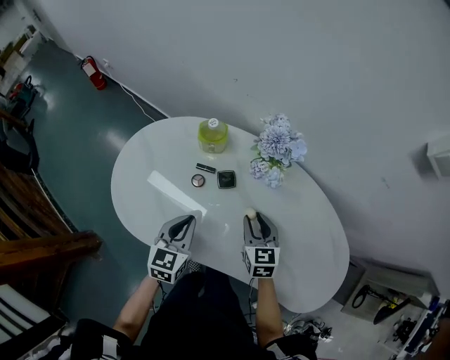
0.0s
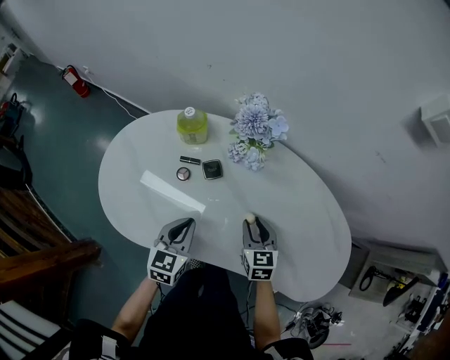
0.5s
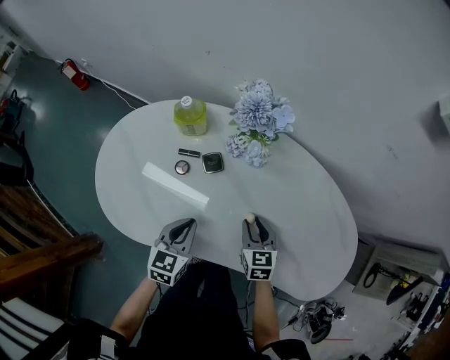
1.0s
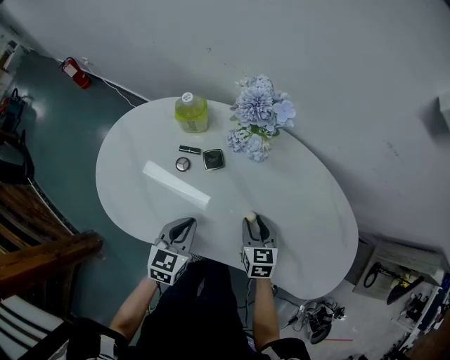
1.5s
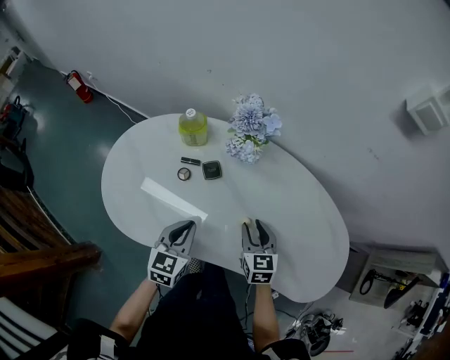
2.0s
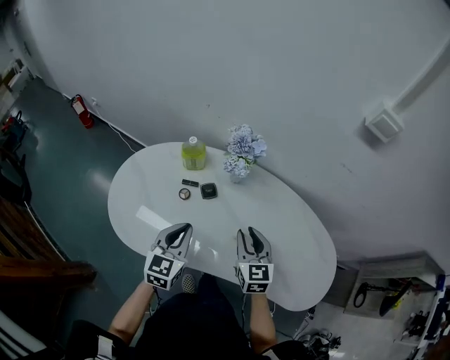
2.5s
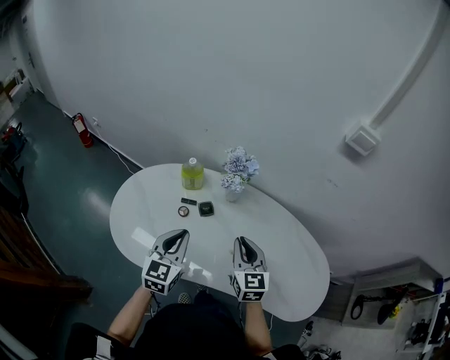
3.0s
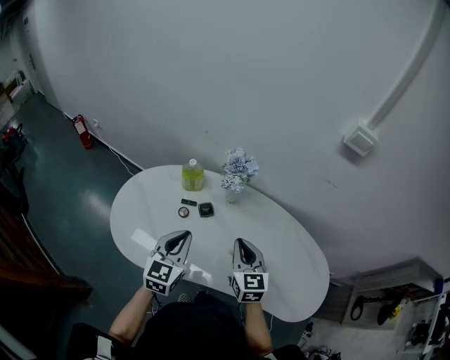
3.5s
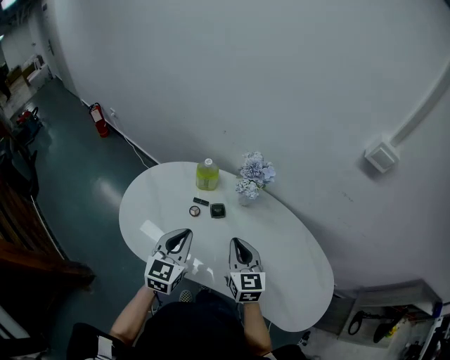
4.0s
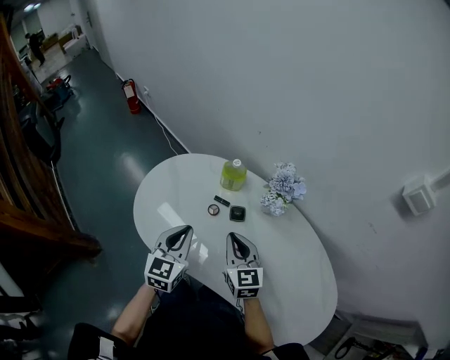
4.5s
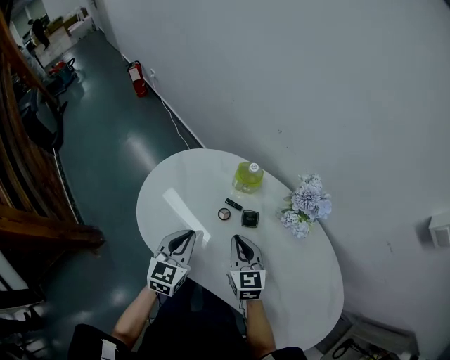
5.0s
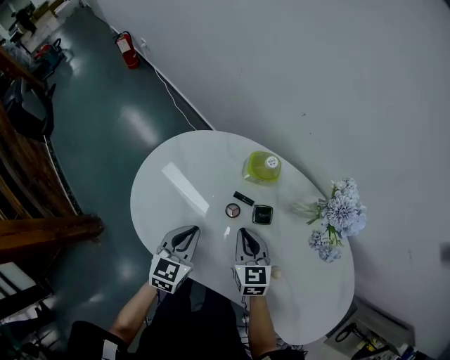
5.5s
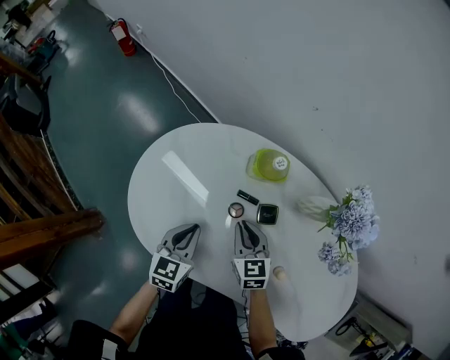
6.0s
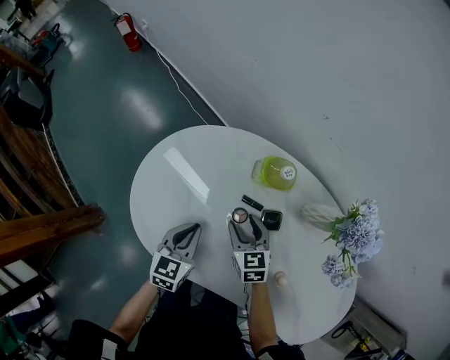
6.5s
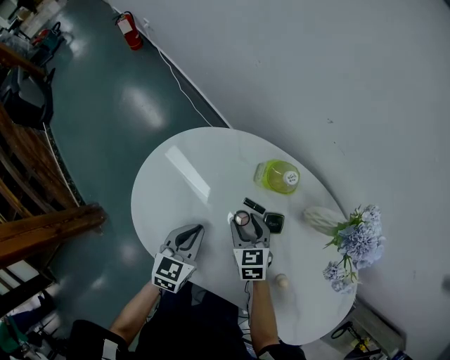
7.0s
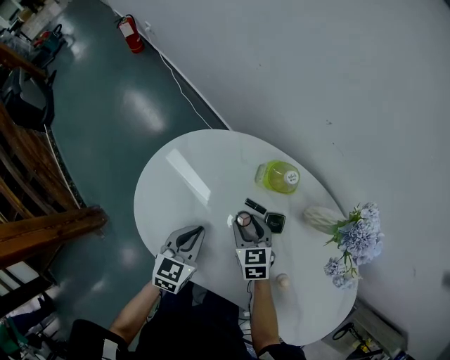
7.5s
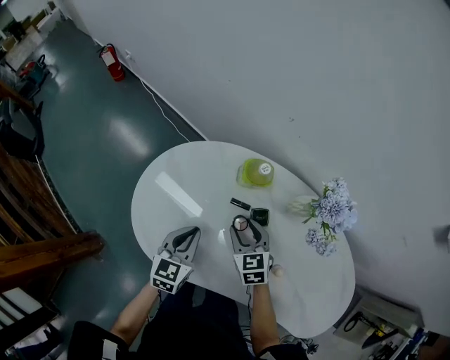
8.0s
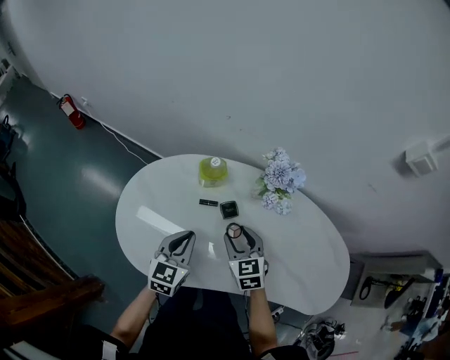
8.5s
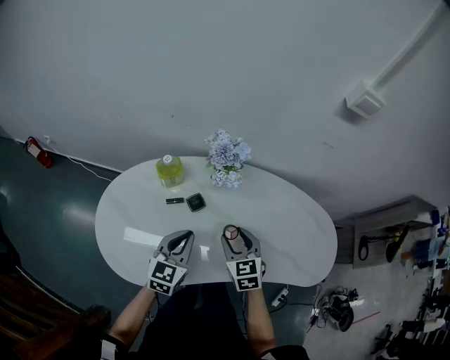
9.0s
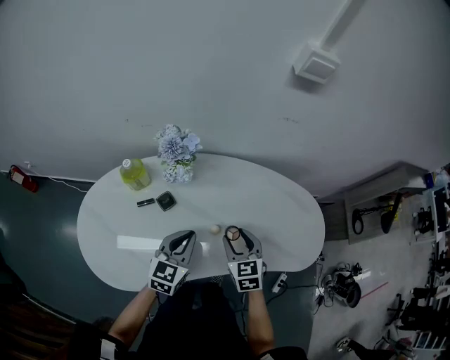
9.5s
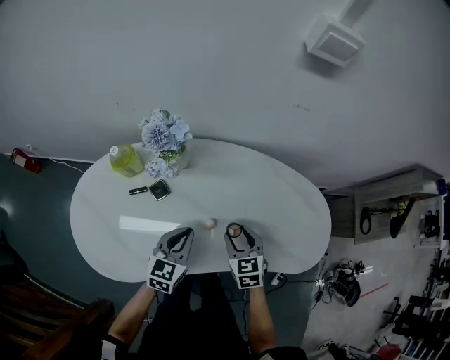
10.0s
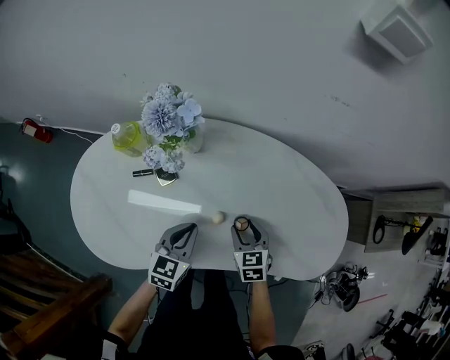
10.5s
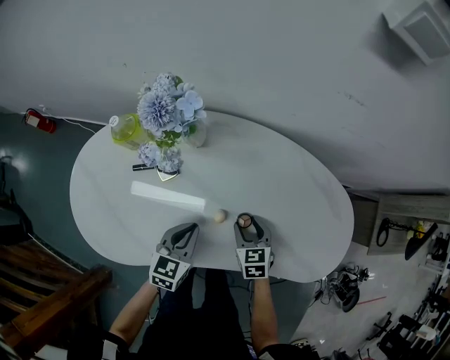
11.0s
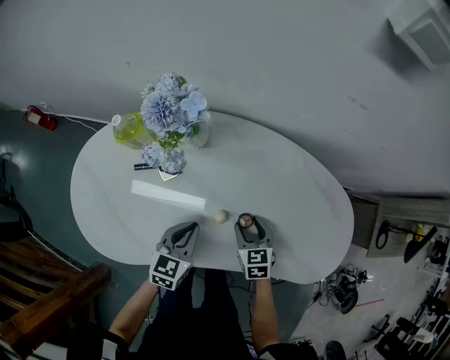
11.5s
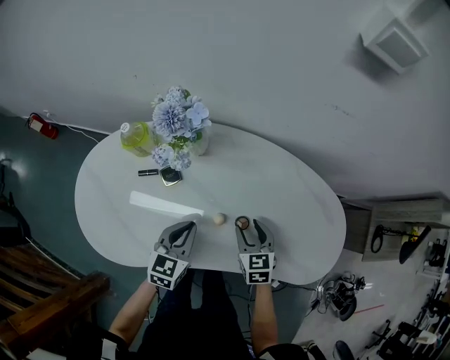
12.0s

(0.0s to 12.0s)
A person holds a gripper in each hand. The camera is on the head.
0.0s - 2.0s: The left gripper travels to the right by approximately 5 cm. The right gripper shifts roughly 10 cm backward and to the right, and reaches roughly 10 cm downward, then returns.
2.0s - 4.0s: The left gripper goes roughly 15 cm upward. Meanwhile the right gripper moves upward and to the left, some 20 cm, and closes up.
4.0s - 6.0s: The two grippers go approximately 25 cm downward, forward and to the left. The left gripper turns by about 20 degrees, while the right gripper rotates about 20 degrees.
6.0s - 8.0s: The right gripper opens its fingers. The left gripper moves upward, approximately 5 cm.
8.0s - 10.0s: The left gripper travels upward and back again, some 10 cm each way, and swivels some 40 degrees. The right gripper reaches about 10 cm upward, then returns, and changes its angle by approximately 40 degrees.
10.0s - 12.0s: The right gripper heads downward, covering roughly 5 cm.

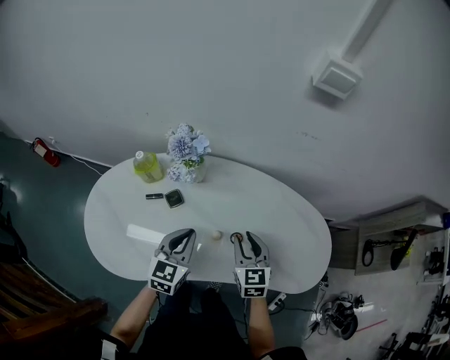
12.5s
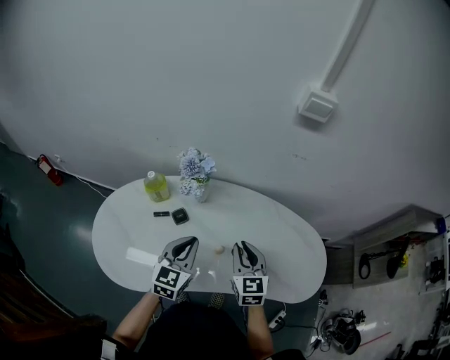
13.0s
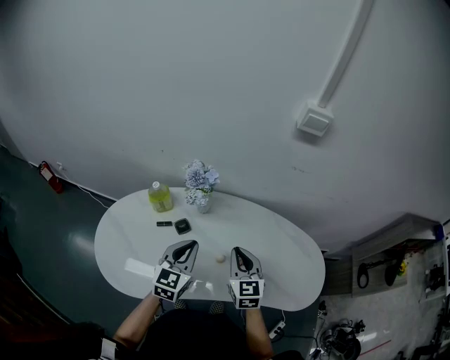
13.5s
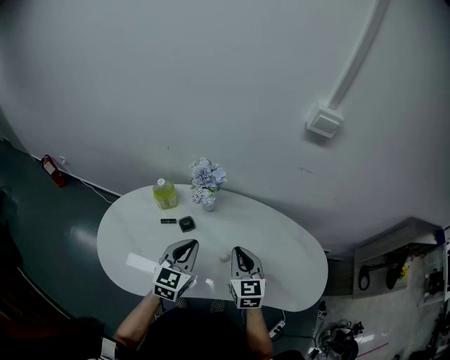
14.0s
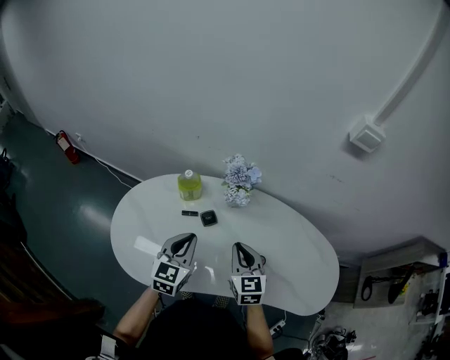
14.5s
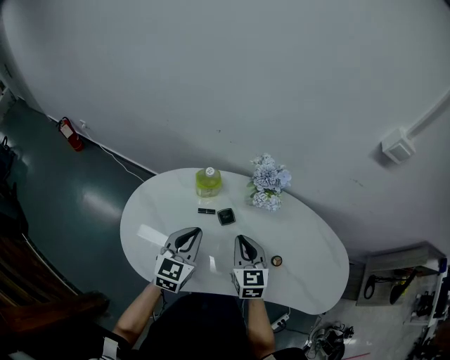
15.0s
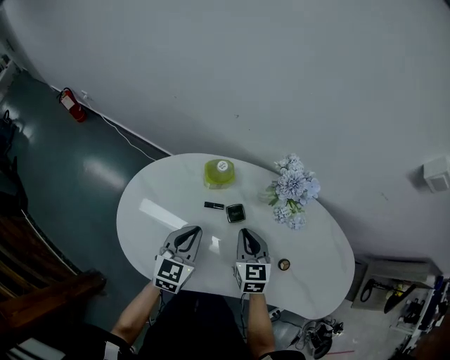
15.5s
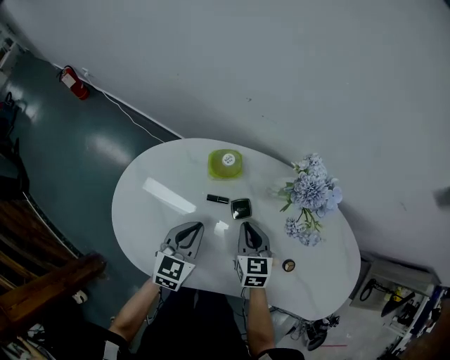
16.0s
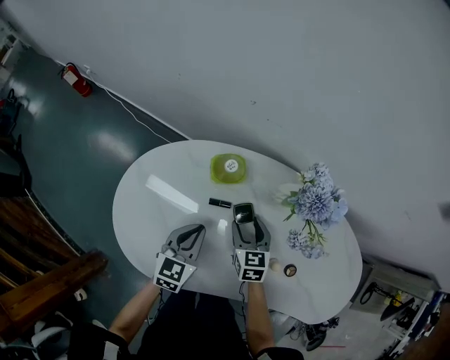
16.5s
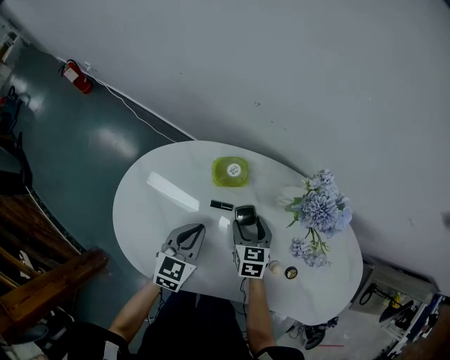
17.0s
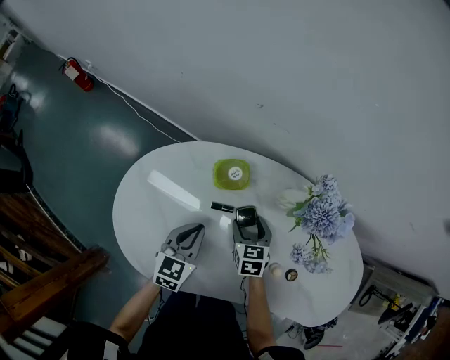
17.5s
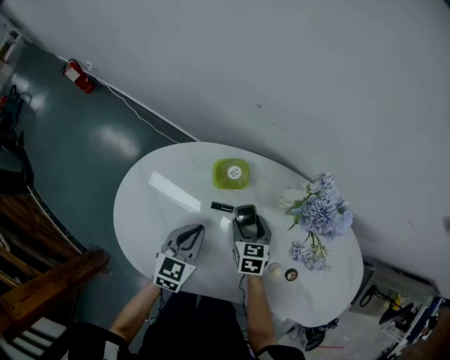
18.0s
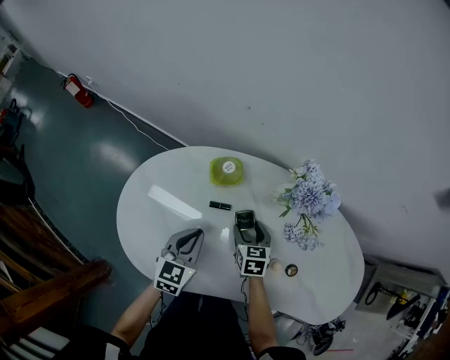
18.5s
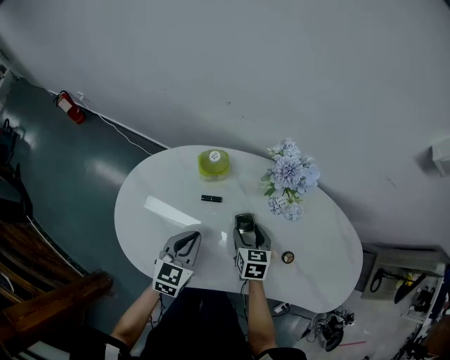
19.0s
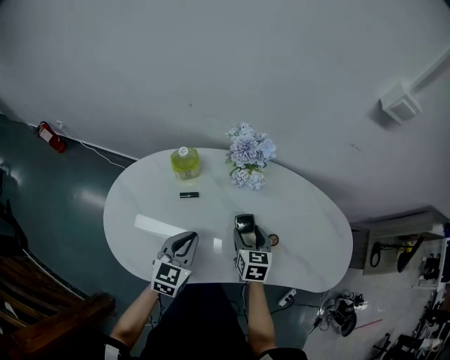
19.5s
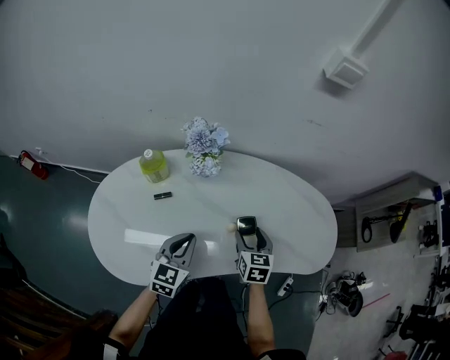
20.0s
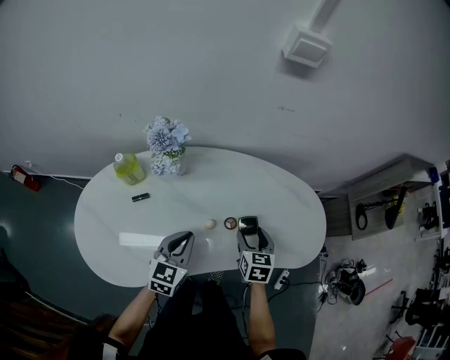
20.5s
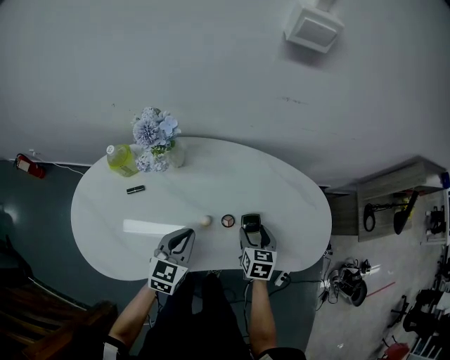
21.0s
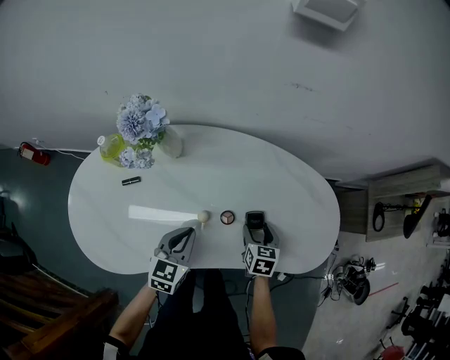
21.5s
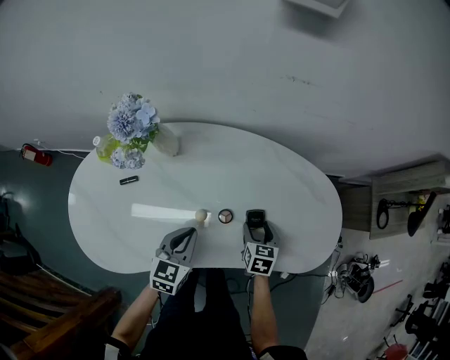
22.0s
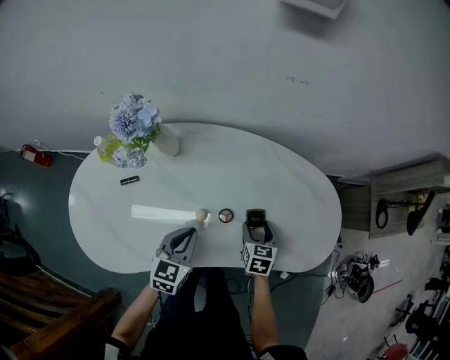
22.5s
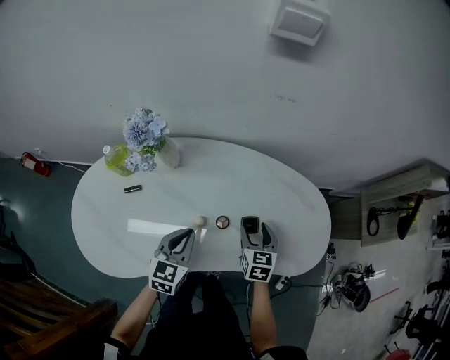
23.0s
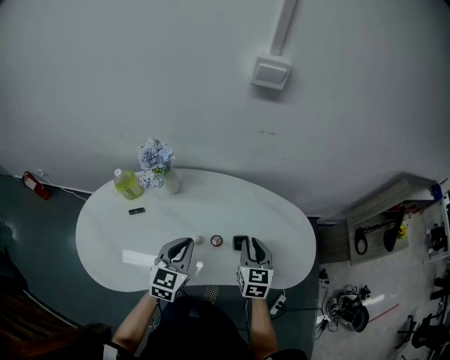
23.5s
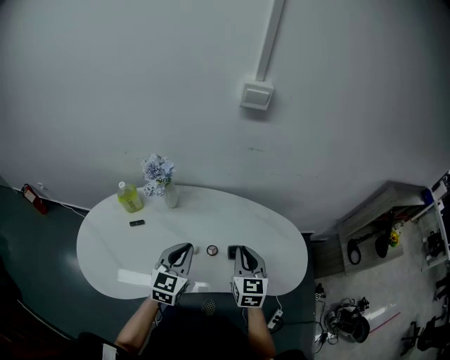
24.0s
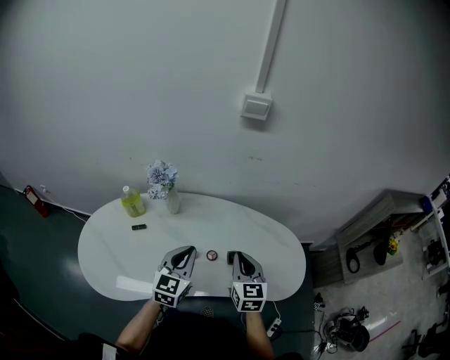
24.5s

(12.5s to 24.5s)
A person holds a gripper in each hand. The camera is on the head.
12.5s - 14.5s: The right gripper shifts about 15 cm to the left and upward, and closes. Meanwhile the left gripper heads to the left, covering some 15 cm.
14.5s - 16.5s: The left gripper goes roughly 20 cm downward, to the left and forward. The right gripper shifts some 25 cm downward, forward and to the left, and opens.
16.5s - 18.5s: The grippers stay close to where they were, moving slightly.
18.5s - 20.5s: The left gripper shifts by roughly 25 cm, and rotates approximately 30 degrees. Meanwhile the right gripper ends up about 35 cm from where it was, and swivels approximately 30 degrees.
20.5s - 22.5s: Both grippers move downward and to the right, some 10 cm.
22.5s - 24.5s: The two grippers go about 25 cm upward. The left gripper swivels approximately 20 degrees. Meanwhile the right gripper tilts its fingers some 30 degrees upward, and closes its fingers.

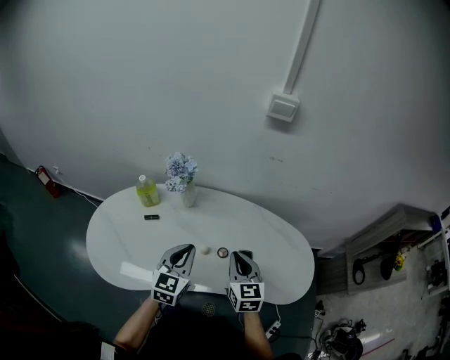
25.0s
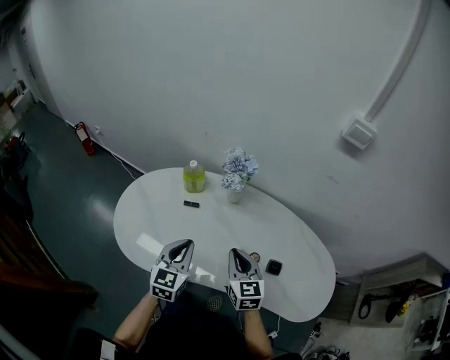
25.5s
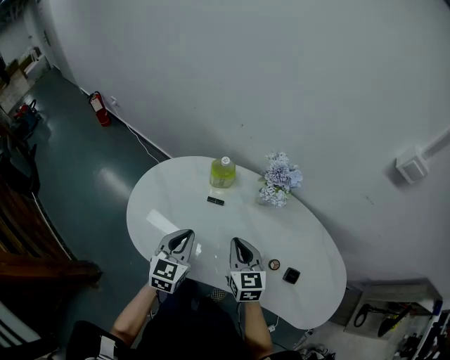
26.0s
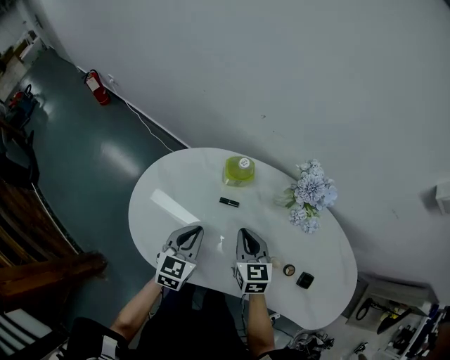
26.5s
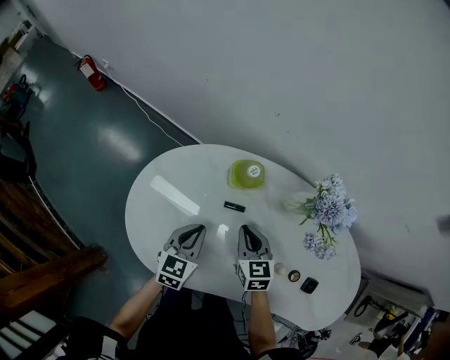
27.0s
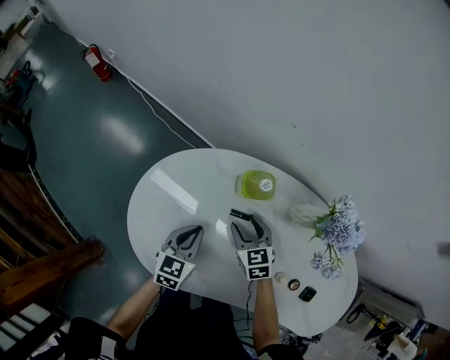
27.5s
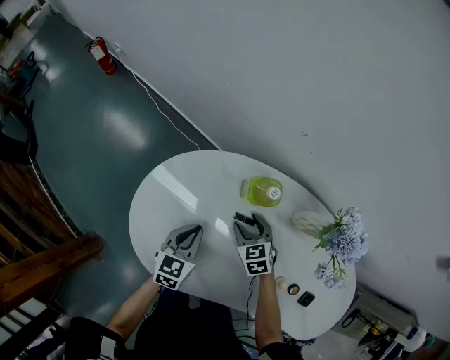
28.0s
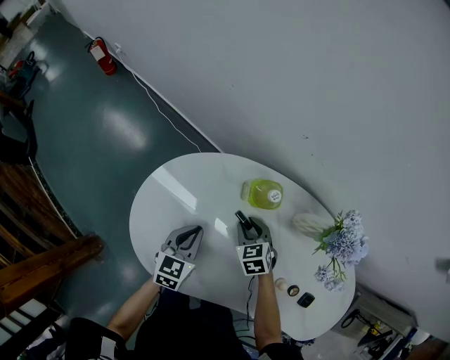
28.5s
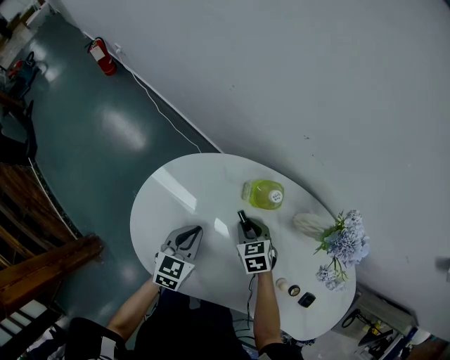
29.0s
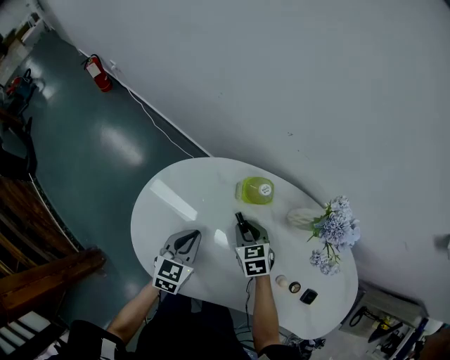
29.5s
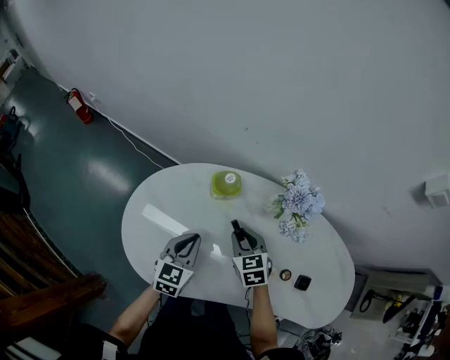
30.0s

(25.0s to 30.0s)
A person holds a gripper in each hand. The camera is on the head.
25.0s - 27.5s: The right gripper moves some 50 cm, rotates some 50 degrees, and opens, while the left gripper shifts by about 40 cm, and rotates some 30 degrees.
27.5s - 30.0s: The right gripper moves upward, to the right and backward, roughly 10 cm, and closes its fingers, while the left gripper shifts about 5 cm upward.
